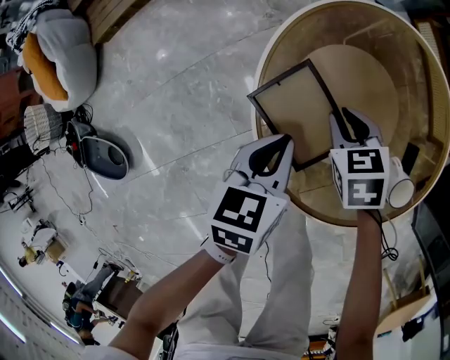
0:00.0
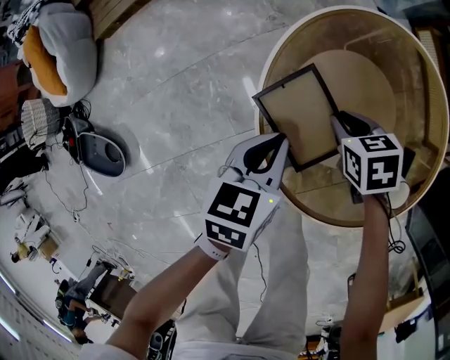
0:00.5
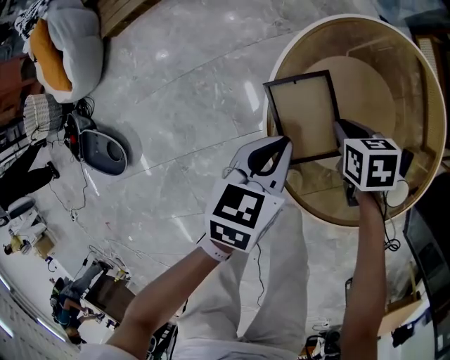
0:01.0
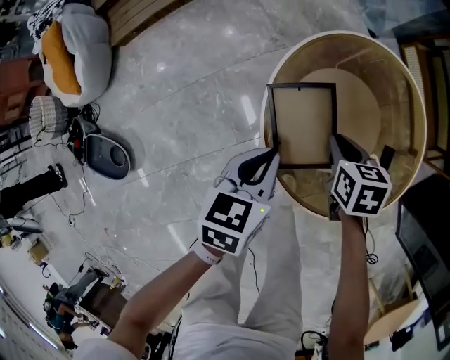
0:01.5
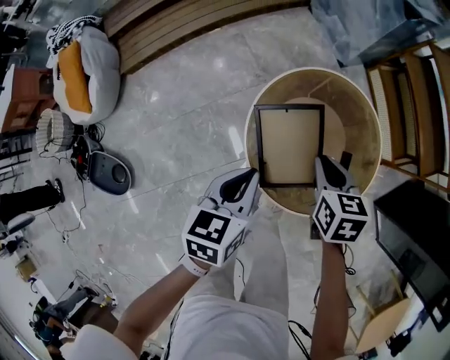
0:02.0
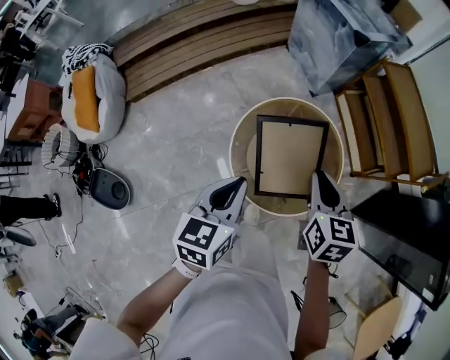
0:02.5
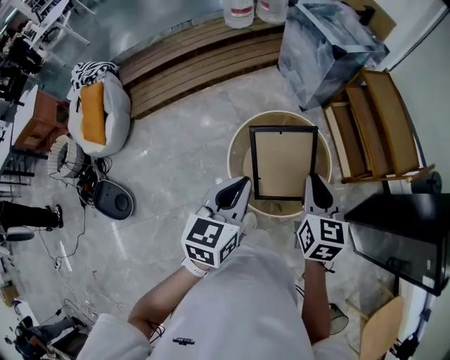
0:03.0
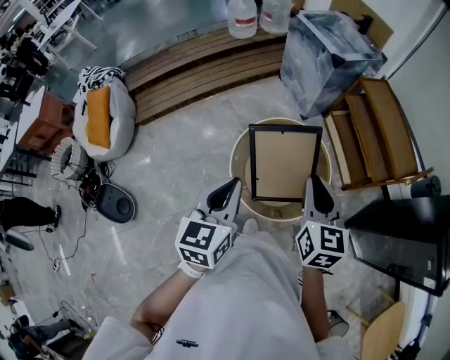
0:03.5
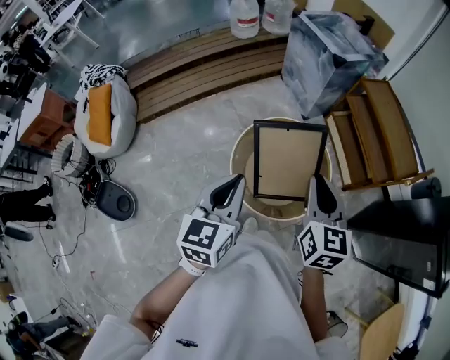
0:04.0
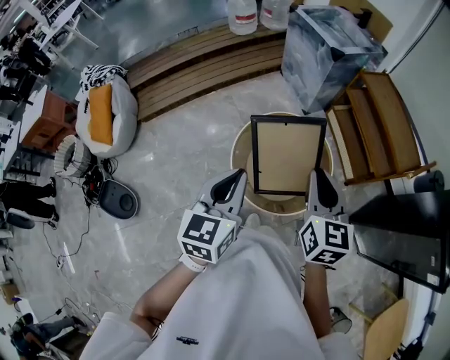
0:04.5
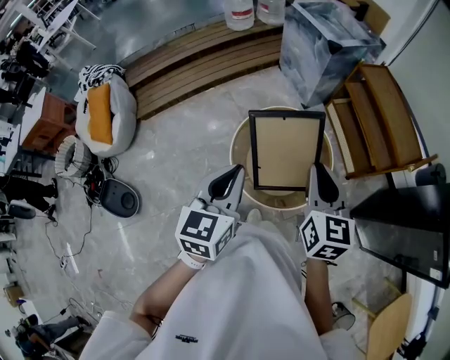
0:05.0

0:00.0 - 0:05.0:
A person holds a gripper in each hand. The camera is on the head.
0:00.0 - 0:02.5: The two grippers go approximately 50 cm upward. The right gripper rotates approximately 40 degrees.
0:02.5 - 0:05.0: Both grippers travel together upward and backward, roughly 15 cm.

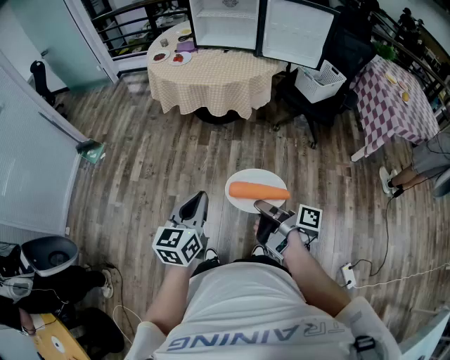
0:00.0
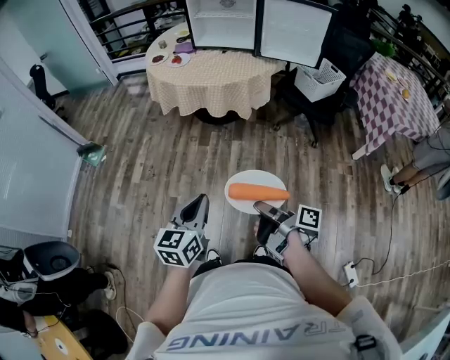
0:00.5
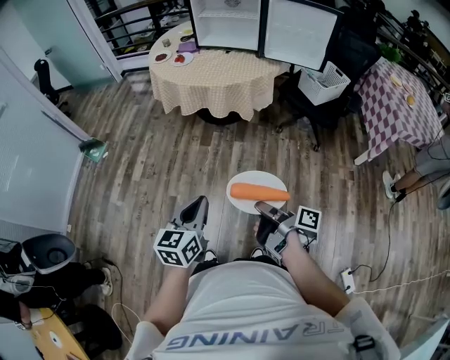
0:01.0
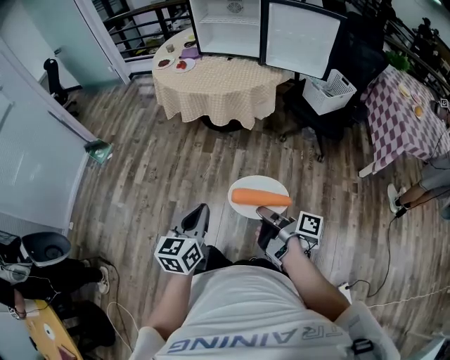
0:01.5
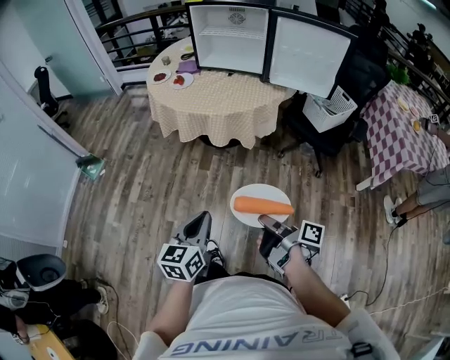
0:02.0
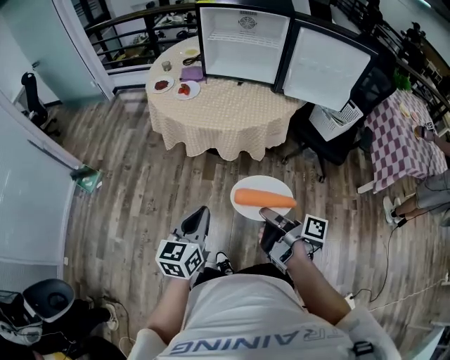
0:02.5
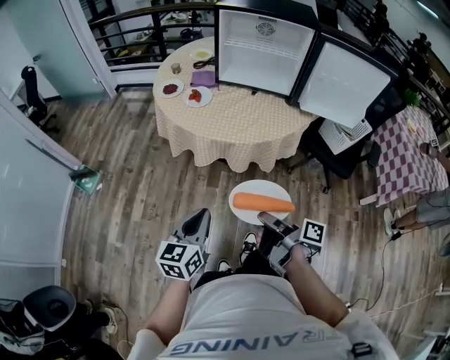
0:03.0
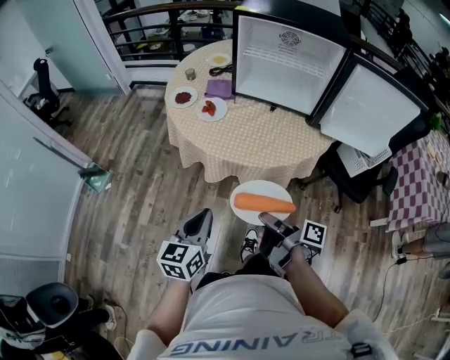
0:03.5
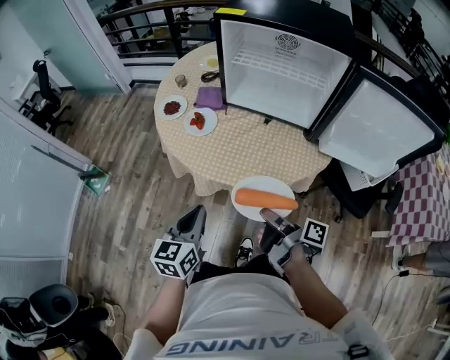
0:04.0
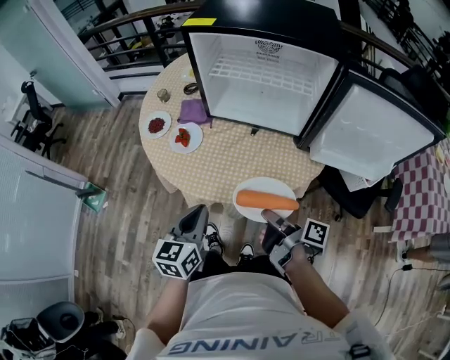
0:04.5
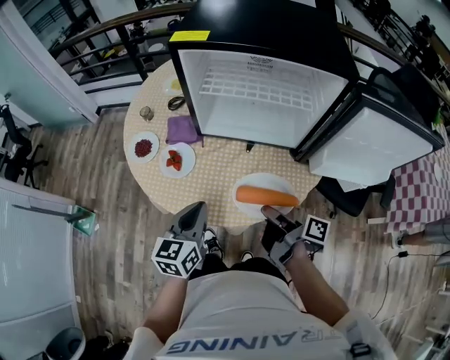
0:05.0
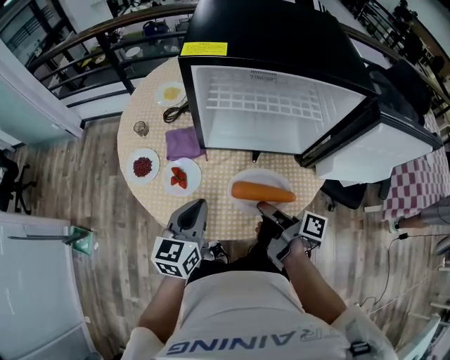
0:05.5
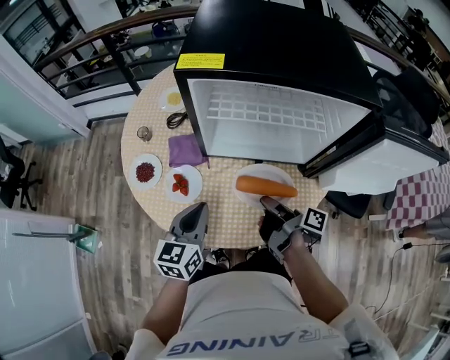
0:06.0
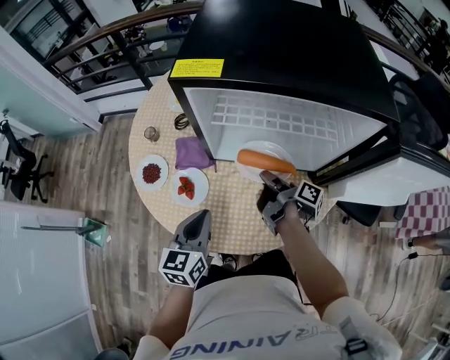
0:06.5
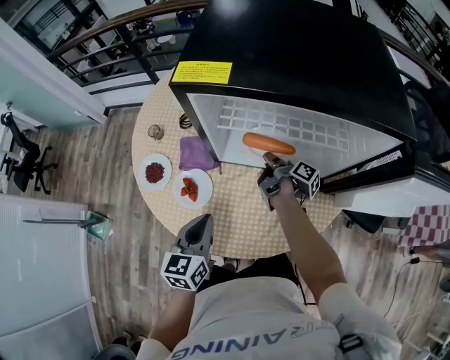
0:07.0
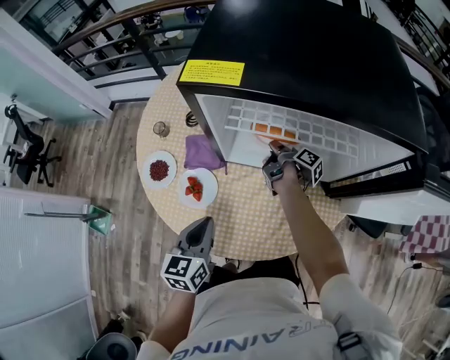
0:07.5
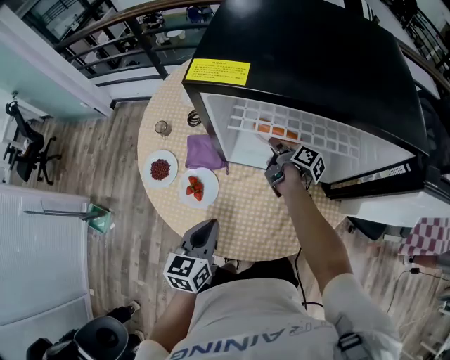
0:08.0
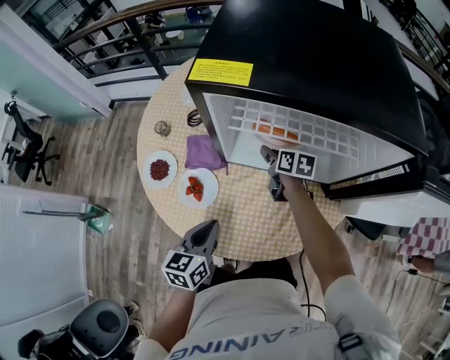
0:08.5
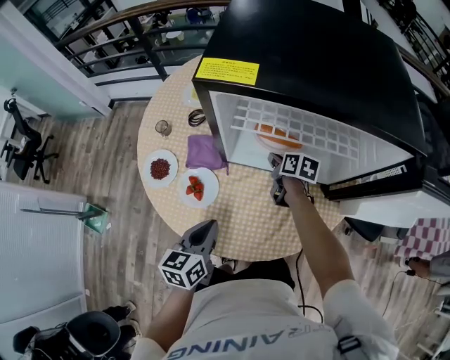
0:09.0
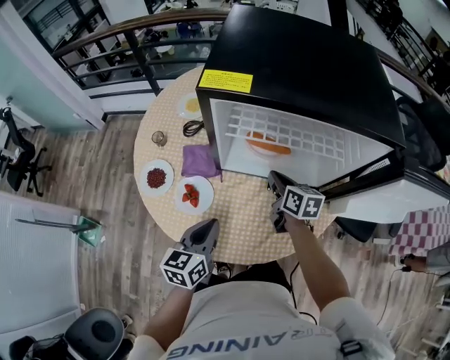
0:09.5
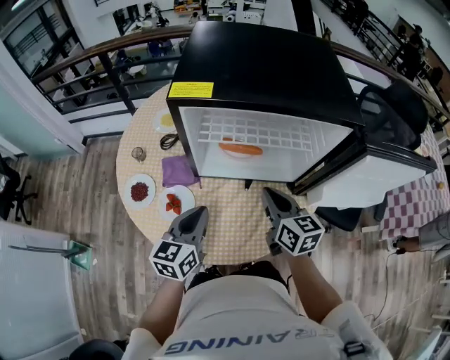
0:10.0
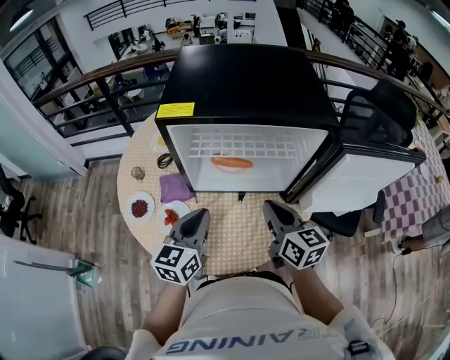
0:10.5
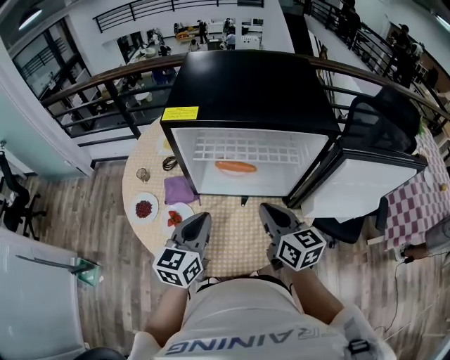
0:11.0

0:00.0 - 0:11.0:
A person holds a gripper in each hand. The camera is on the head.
0:00.0 - 0:02.0: The left gripper ends up approximately 10 cm from where it was.
0:02.0 - 0:03.5: The left gripper changes place by roughly 30 cm.
0:03.5 - 0:05.5: The left gripper changes place by approximately 35 cm.
0:05.5 - 0:07.5: The left gripper moves roughly 5 cm.
0:09.0 - 0:11.0: The left gripper moves upward, some 15 cm, and swivels some 20 degrees.

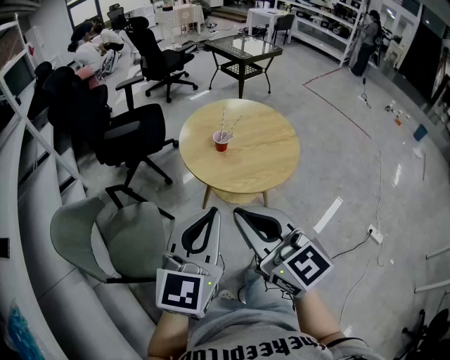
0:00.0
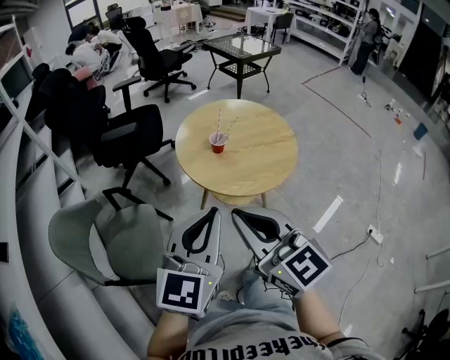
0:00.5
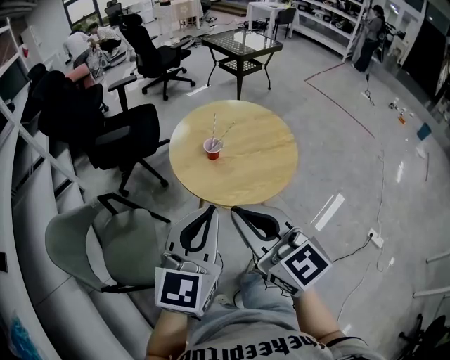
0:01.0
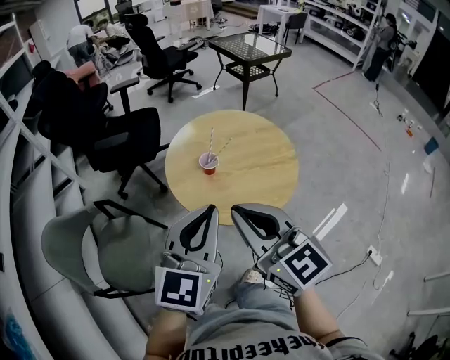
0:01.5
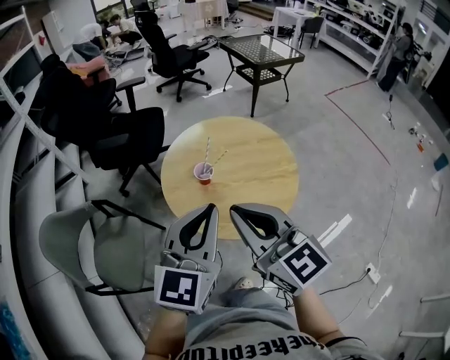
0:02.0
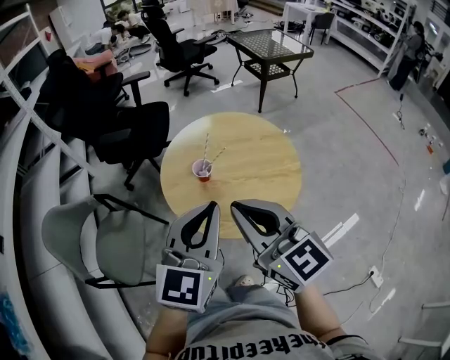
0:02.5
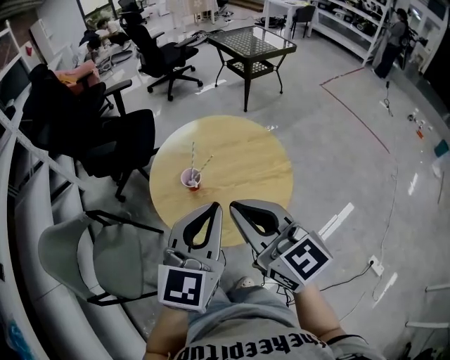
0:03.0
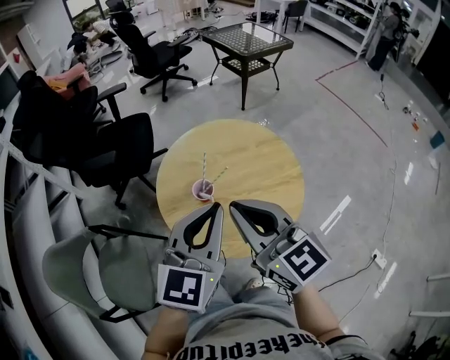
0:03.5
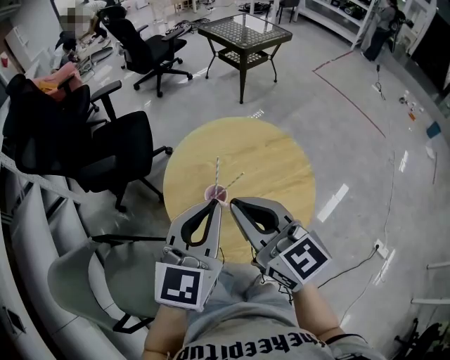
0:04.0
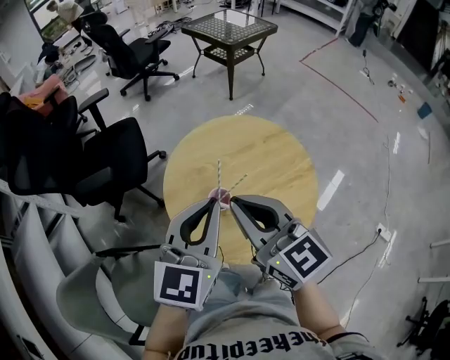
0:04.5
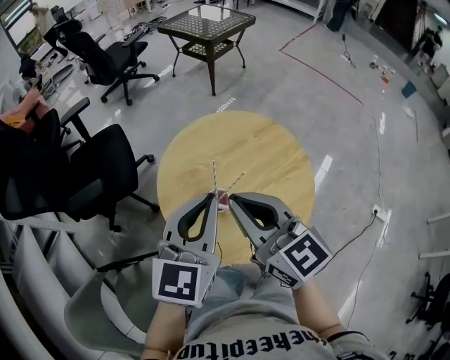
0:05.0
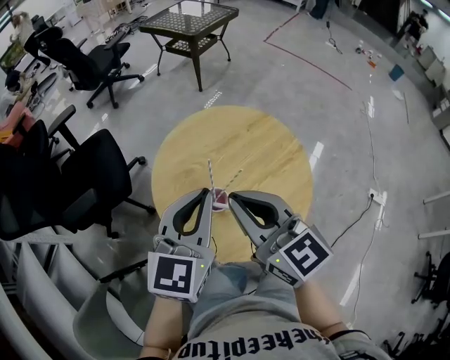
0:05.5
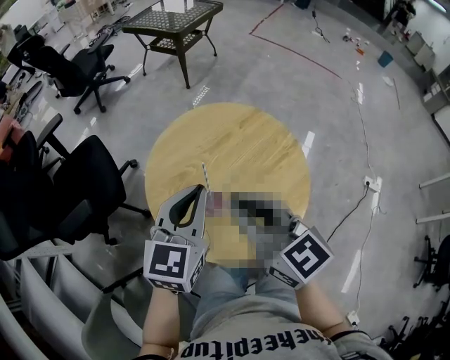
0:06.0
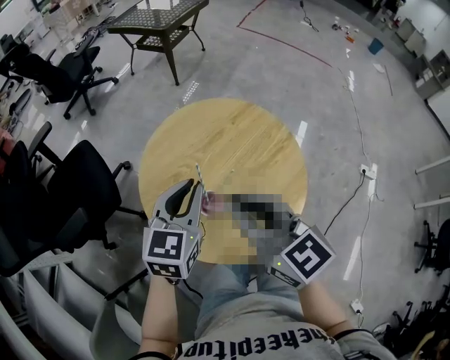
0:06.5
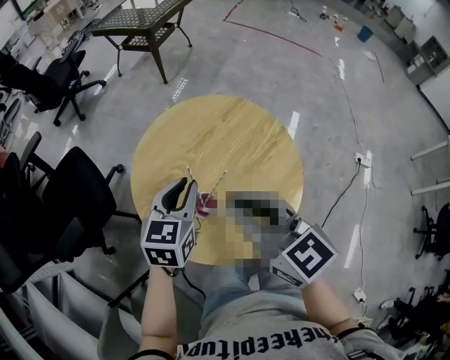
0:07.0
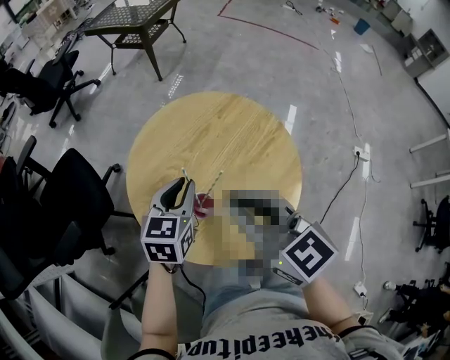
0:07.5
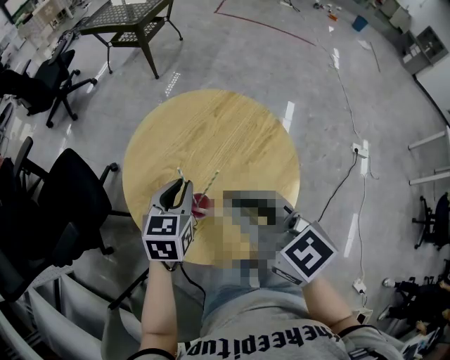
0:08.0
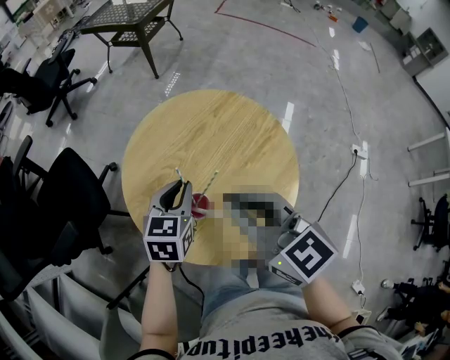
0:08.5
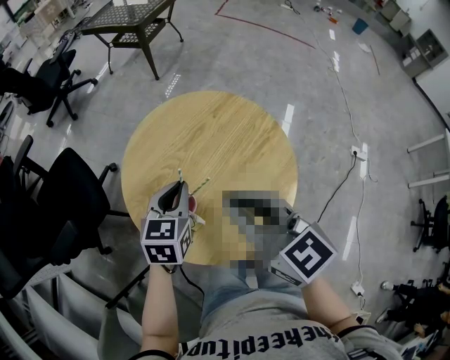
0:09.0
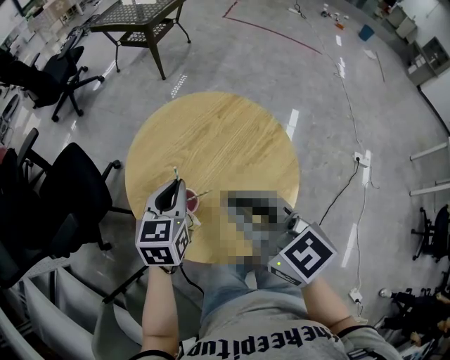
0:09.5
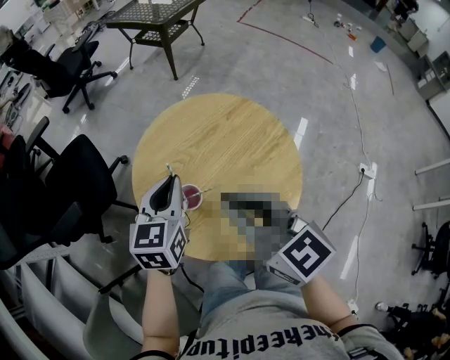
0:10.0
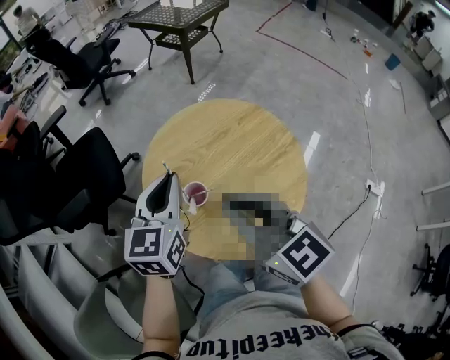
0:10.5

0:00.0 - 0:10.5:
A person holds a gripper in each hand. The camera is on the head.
0:00.0 - 0:02.0: The two grippers go some 20 cm forward and to the right.
0:02.0 - 0:04.0: Both grippers move forward, about 15 cm.
0:04.0 - 0:06.5: The right gripper goes about 5 cm forward, and rotates some 20 degrees. The left gripper is displaced forward and downward by approximately 15 cm, and swivels some 30 degrees.
0:06.5 - 0:08.5: The left gripper shifts roughly 10 cm downward.
0:08.5 - 0:10.5: The left gripper moves upward, approximately 15 cm, and swivels about 30 degrees, while the right gripper moves about 5 cm.

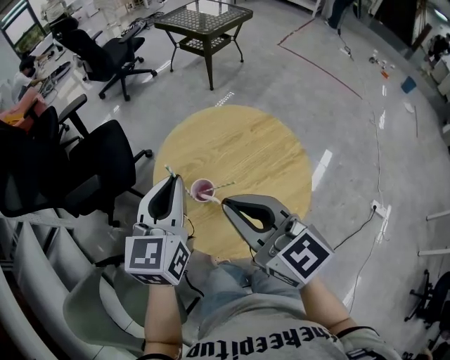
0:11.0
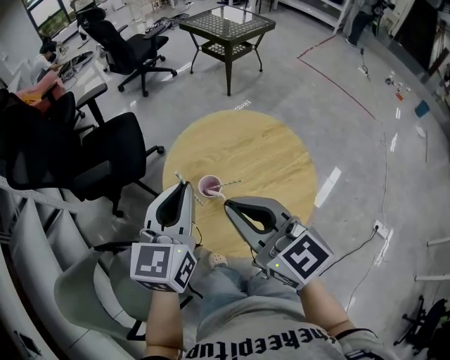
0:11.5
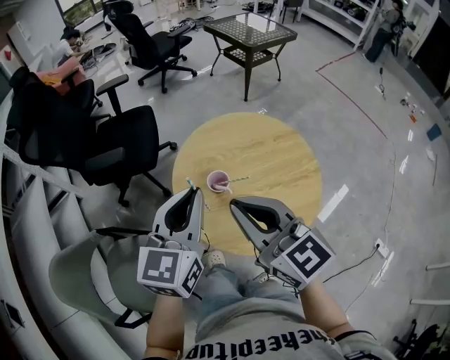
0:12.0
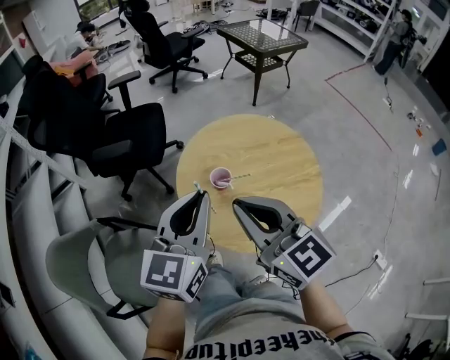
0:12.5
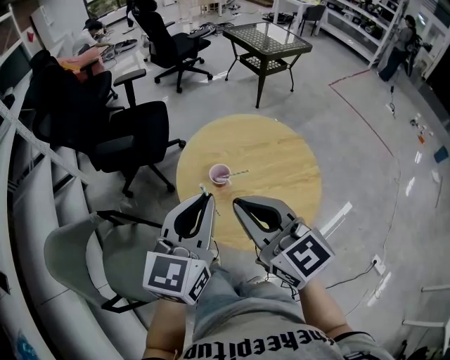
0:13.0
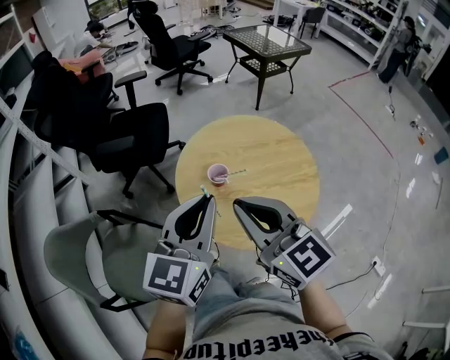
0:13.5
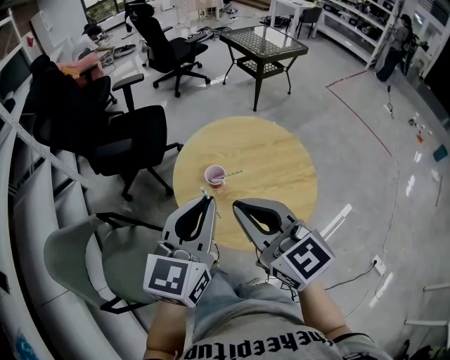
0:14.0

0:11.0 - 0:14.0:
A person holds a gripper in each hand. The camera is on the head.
0:11.0 - 0:12.5: The right gripper is displaced backward by some 5 cm. The left gripper travels backward by approximately 10 cm.
0:12.5 - 0:14.0: The left gripper changes place by roughly 5 cm.
